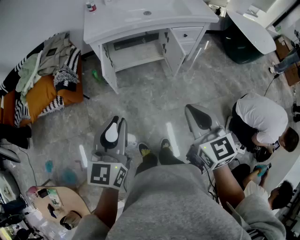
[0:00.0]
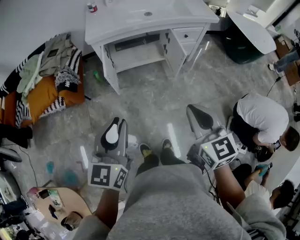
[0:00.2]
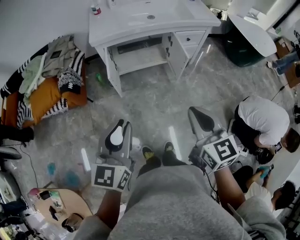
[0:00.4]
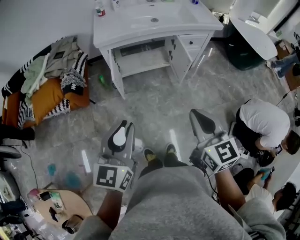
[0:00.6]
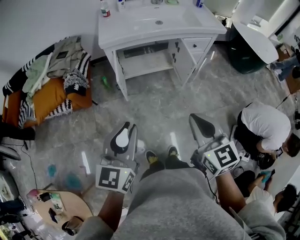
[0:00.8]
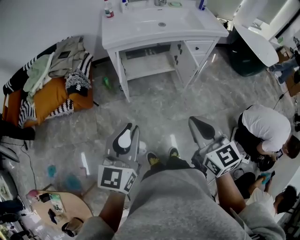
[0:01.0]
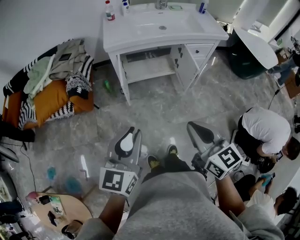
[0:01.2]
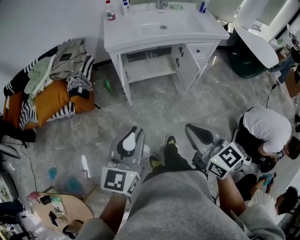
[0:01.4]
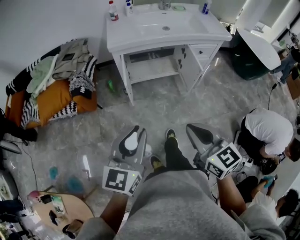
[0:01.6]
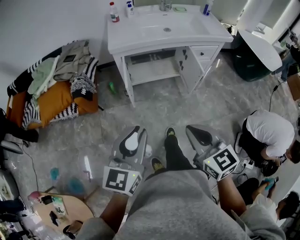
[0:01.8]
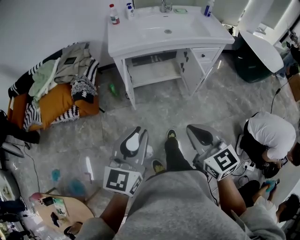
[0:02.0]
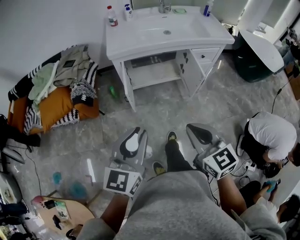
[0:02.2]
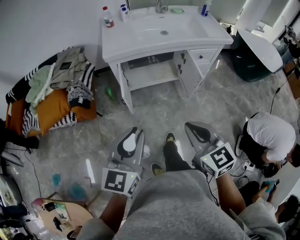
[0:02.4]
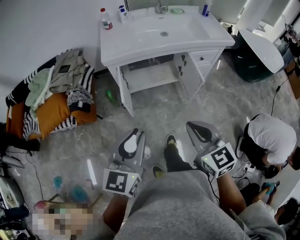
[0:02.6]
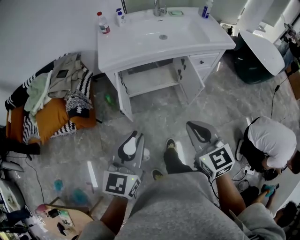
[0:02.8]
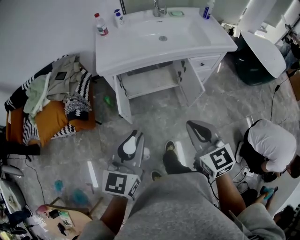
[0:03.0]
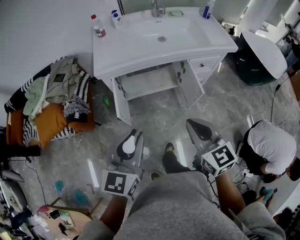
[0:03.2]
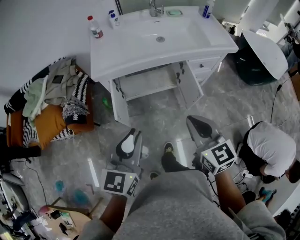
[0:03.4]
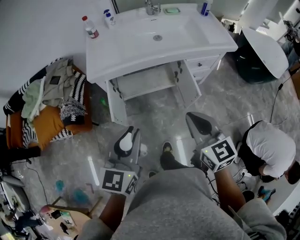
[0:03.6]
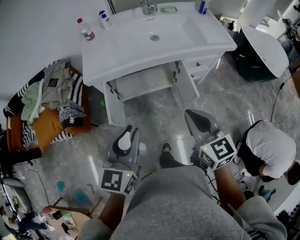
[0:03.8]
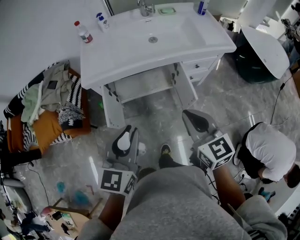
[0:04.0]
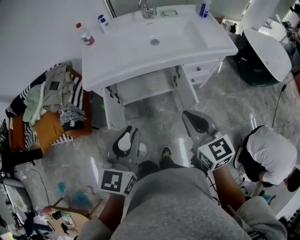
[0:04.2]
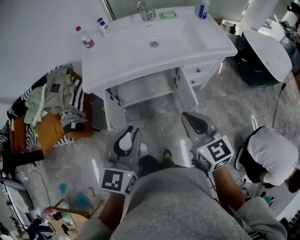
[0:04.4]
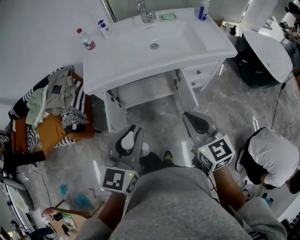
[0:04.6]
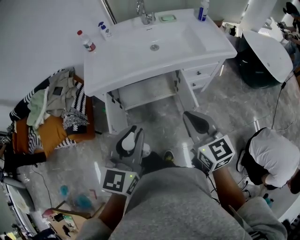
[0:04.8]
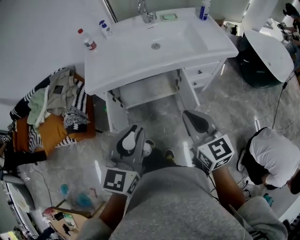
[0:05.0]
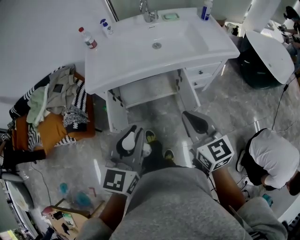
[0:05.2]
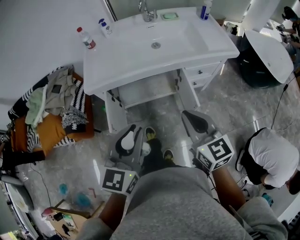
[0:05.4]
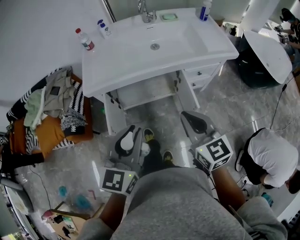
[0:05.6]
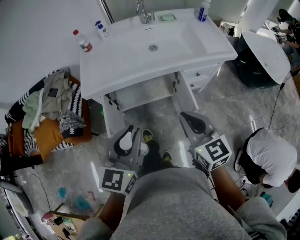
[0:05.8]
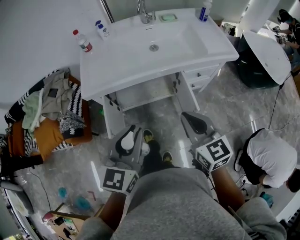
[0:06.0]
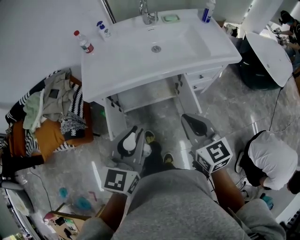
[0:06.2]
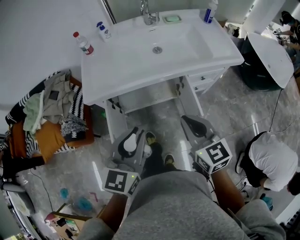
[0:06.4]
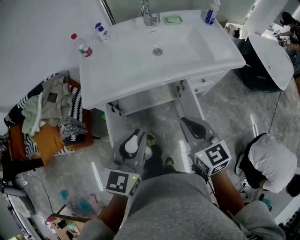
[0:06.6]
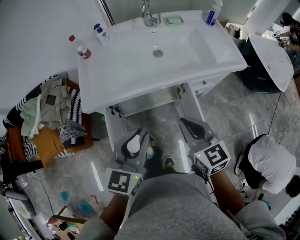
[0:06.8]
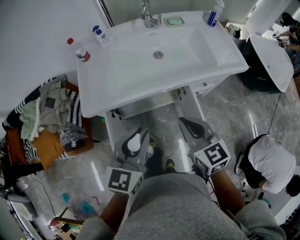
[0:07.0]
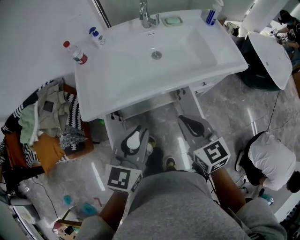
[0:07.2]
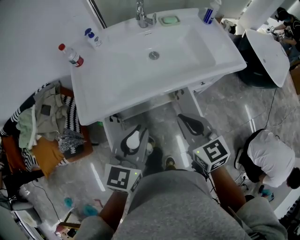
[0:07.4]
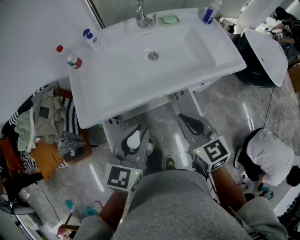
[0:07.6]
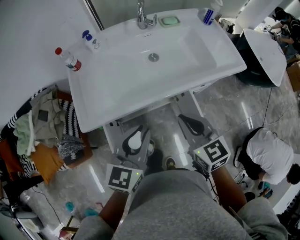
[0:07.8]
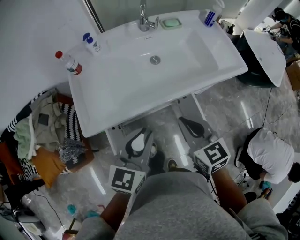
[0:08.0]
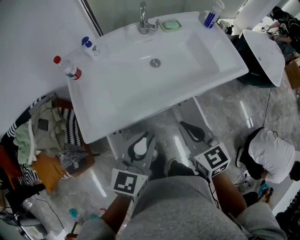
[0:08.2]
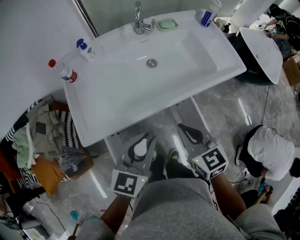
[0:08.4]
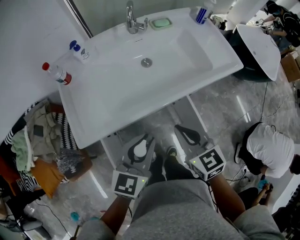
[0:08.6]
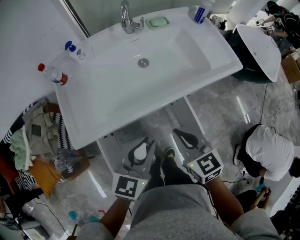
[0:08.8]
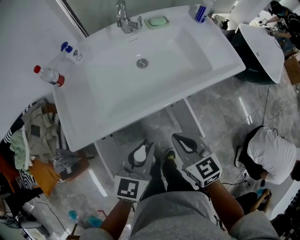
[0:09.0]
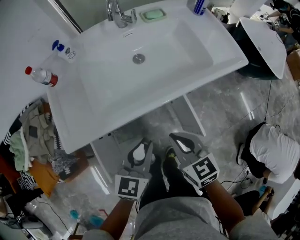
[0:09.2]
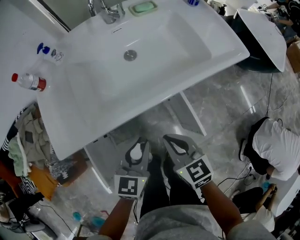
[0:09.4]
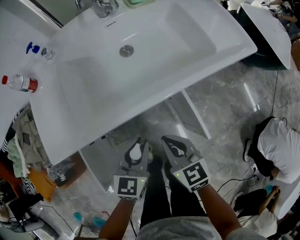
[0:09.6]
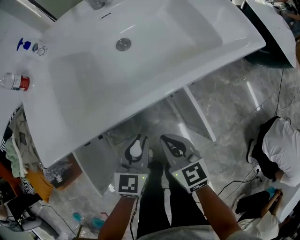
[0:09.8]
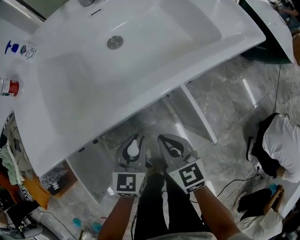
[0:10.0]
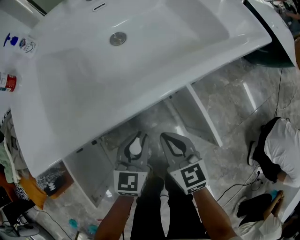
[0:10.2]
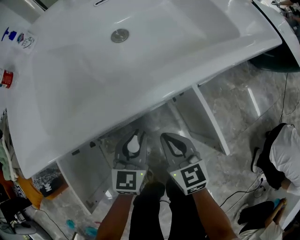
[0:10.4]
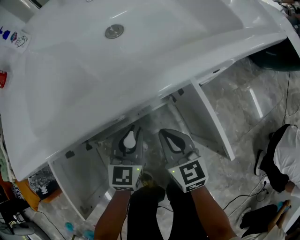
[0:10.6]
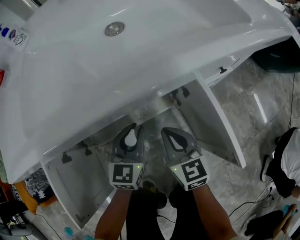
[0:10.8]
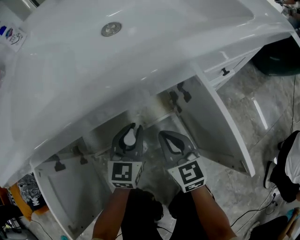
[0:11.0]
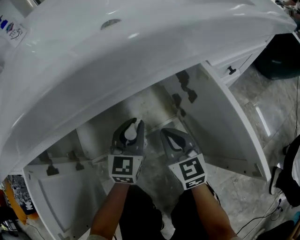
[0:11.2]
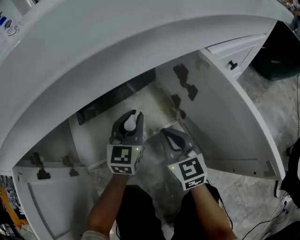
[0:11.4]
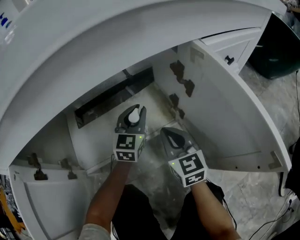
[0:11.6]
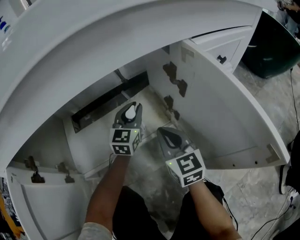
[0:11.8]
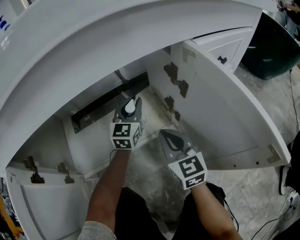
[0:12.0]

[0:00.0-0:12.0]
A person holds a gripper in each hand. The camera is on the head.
0:00.0 to 0:01.6: The right gripper is displaced to the left by some 10 cm. Meanwhile the left gripper goes approximately 5 cm to the left.
0:01.6 to 0:03.0: The two grippers go approximately 20 cm forward.
0:03.0 to 0:04.4: The two grippers go roughly 15 cm forward and to the right.
0:04.4 to 0:06.0: The grippers move only a little.
0:06.0 to 0:07.6: The grippers both shift forward by about 15 cm.
0:07.6 to 0:09.0: Both grippers travel together downward, some 10 cm.
0:09.0 to 0:10.4: Both grippers travel together downward, approximately 30 cm.
0:10.4 to 0:12.0: The right gripper travels downward by some 20 cm, while the left gripper goes about 30 cm downward and forward.

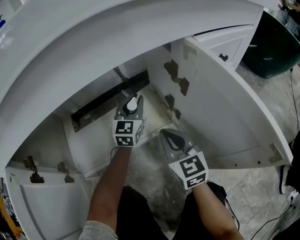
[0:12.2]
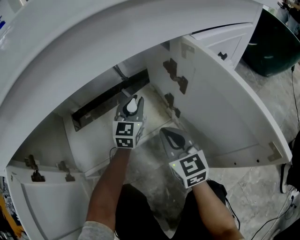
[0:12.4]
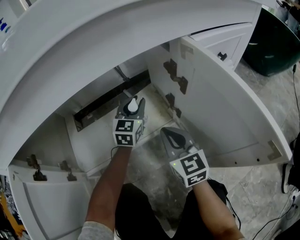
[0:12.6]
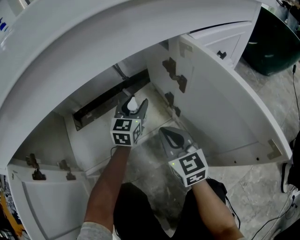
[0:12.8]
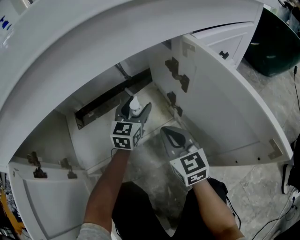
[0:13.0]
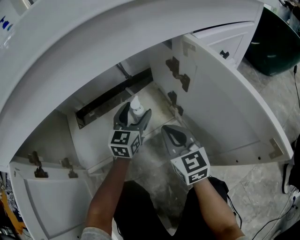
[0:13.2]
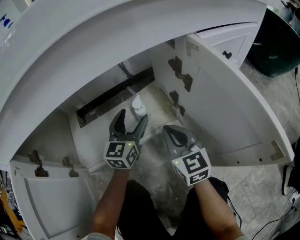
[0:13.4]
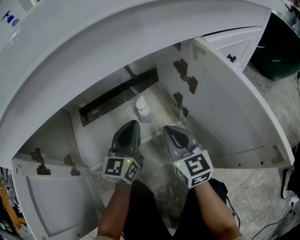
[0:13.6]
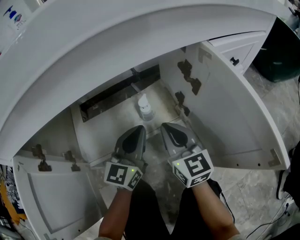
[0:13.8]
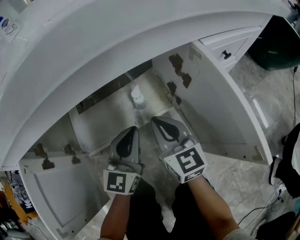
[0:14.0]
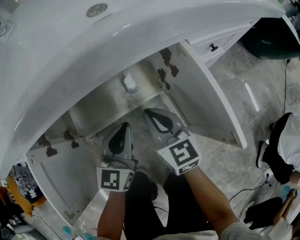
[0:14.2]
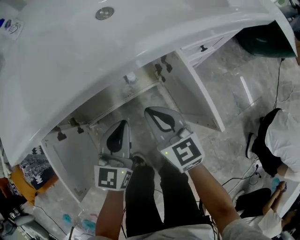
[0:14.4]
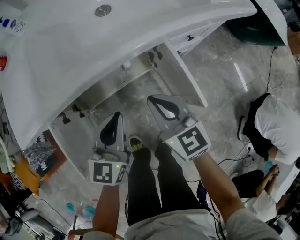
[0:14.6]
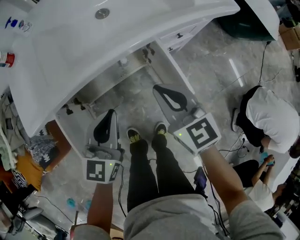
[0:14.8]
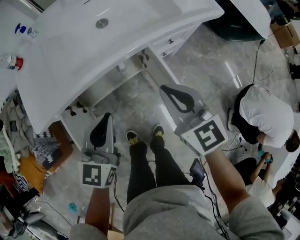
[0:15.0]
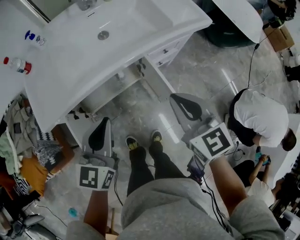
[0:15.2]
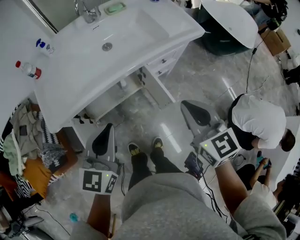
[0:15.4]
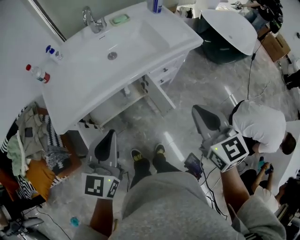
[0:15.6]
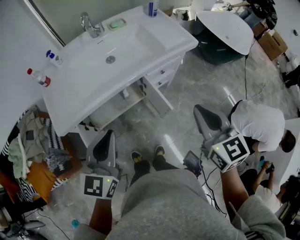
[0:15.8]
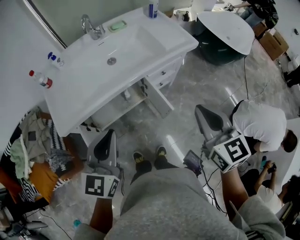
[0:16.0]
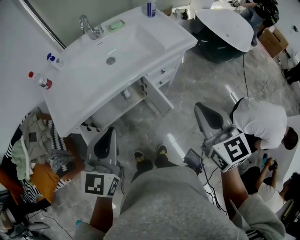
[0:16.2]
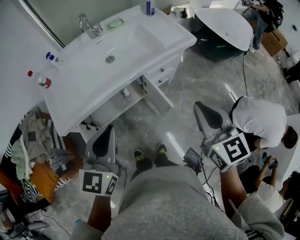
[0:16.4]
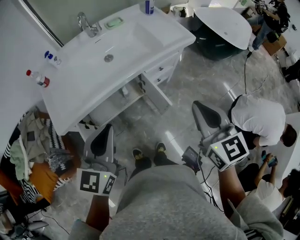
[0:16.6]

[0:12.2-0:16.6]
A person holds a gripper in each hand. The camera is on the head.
0:12.2 to 0:13.6: The left gripper shifts approximately 15 cm backward, and opens, then closes once more.
0:13.6 to 0:15.2: The right gripper travels upward by roughly 50 cm, while the left gripper shifts some 60 cm upward and backward.
0:15.2 to 0:16.6: The left gripper shifts approximately 10 cm upward. The right gripper travels upward, to the right and backward by some 15 cm.

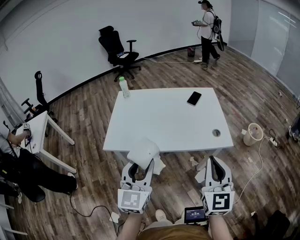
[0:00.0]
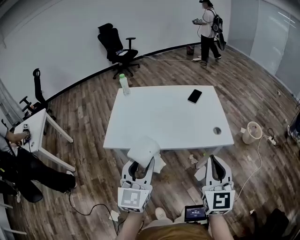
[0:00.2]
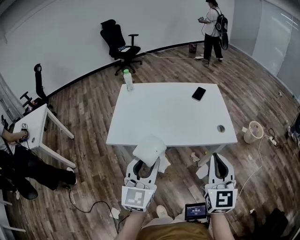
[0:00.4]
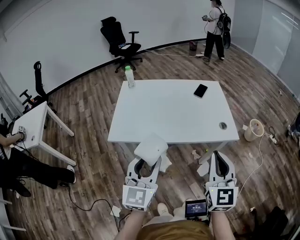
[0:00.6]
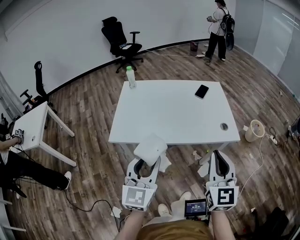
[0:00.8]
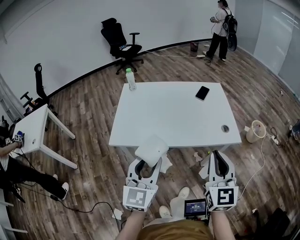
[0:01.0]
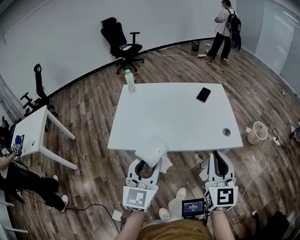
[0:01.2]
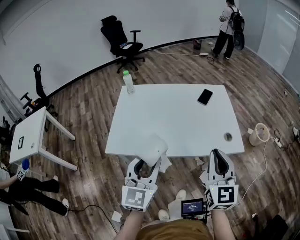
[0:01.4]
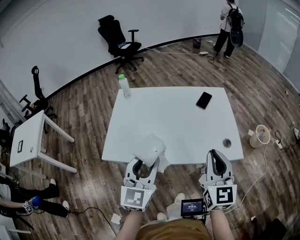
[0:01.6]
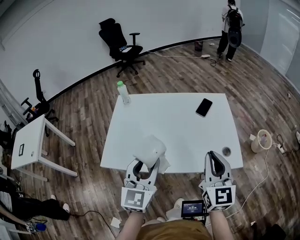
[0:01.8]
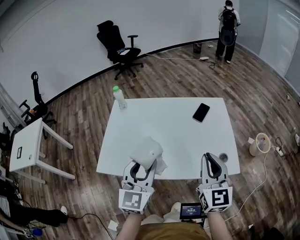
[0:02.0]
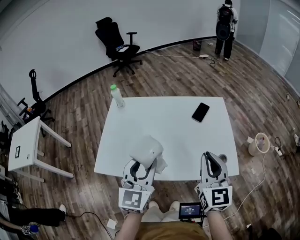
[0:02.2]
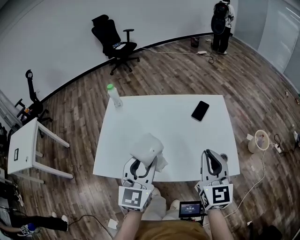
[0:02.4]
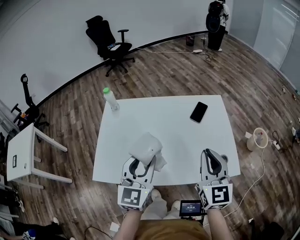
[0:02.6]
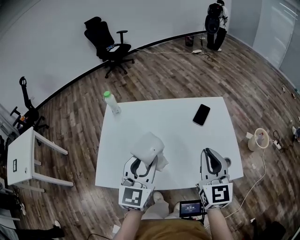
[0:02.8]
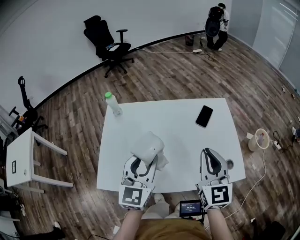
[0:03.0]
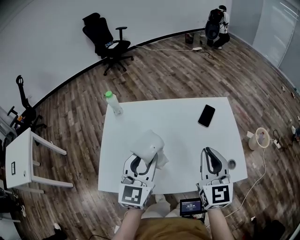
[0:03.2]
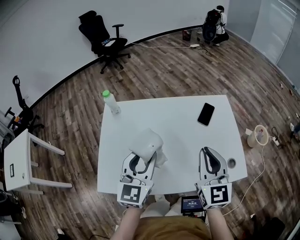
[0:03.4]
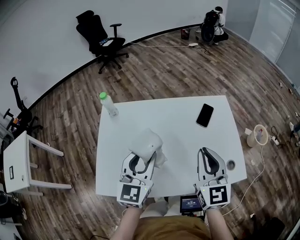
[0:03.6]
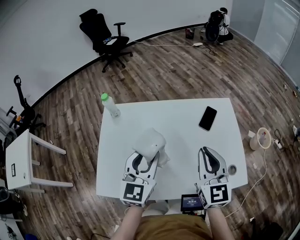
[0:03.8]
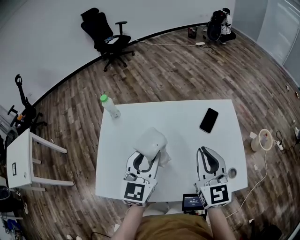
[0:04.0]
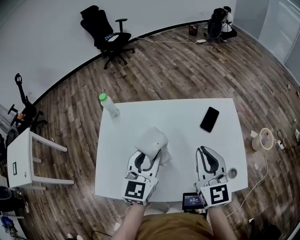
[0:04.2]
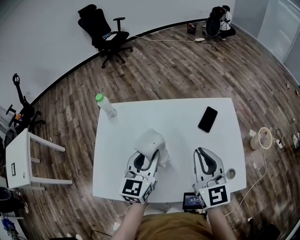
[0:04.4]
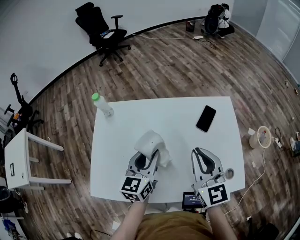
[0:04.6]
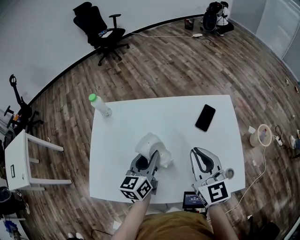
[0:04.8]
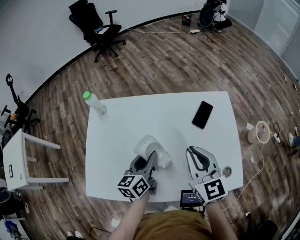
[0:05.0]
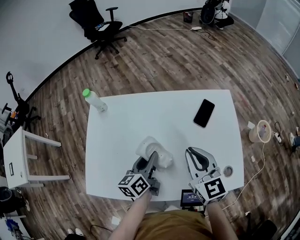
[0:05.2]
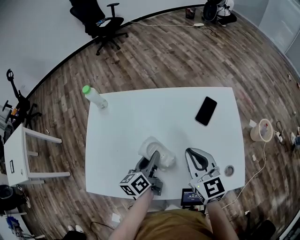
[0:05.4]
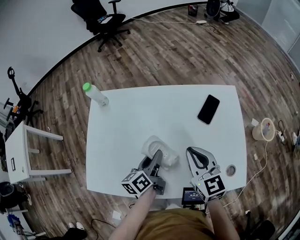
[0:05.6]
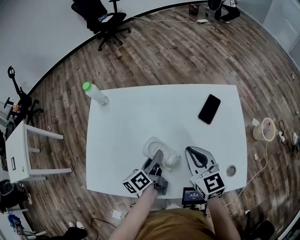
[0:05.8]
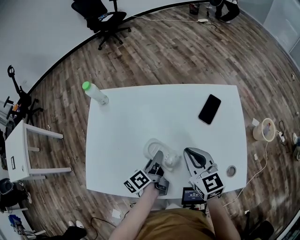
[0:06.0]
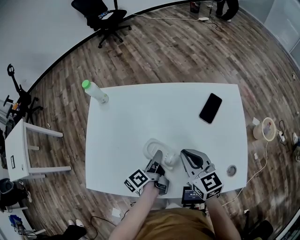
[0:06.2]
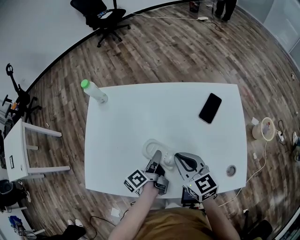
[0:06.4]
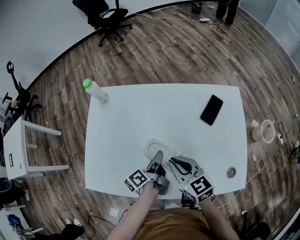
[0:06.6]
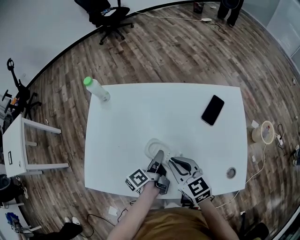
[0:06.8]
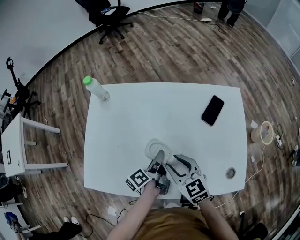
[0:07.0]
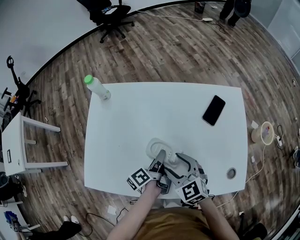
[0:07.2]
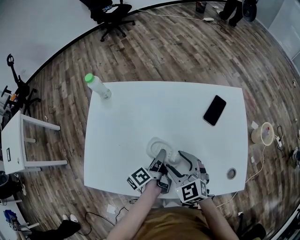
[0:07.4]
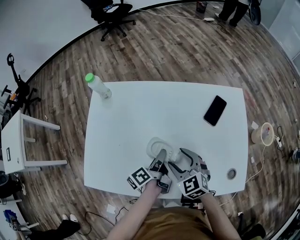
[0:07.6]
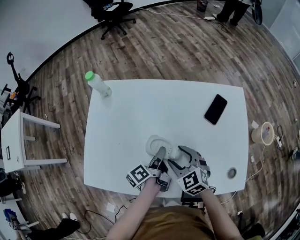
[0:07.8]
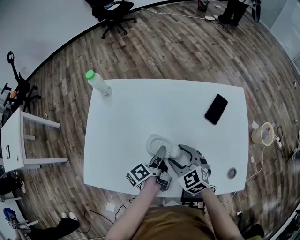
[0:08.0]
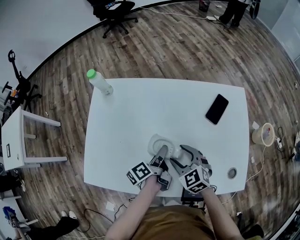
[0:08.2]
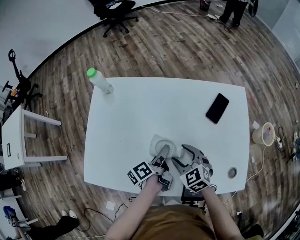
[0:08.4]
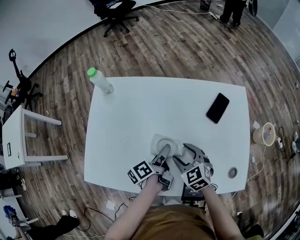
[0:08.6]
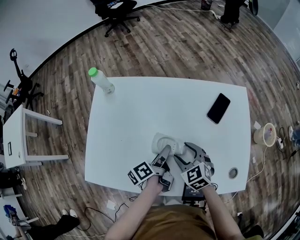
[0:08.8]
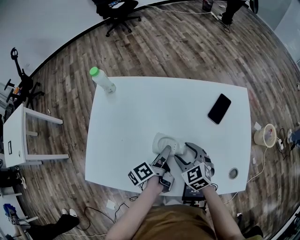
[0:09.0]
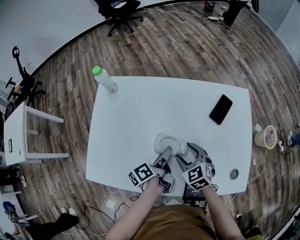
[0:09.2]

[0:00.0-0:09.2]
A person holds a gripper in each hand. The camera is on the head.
0:00.0 to 0:01.6: Both grippers travel together forward, roughly 15 cm.
0:01.6 to 0:03.0: Both grippers travel together forward, some 20 cm.
0:03.0 to 0:04.6: The right gripper shifts roughly 10 cm forward. Meanwhile the left gripper travels forward and downward by roughly 15 cm.
0:04.6 to 0:06.2: The grippers both shift downward by roughly 15 cm. The right gripper changes its angle by approximately 20 degrees. The left gripper twists some 70 degrees counterclockwise, seen from behind.
0:06.2 to 0:07.6: The right gripper travels downward by about 10 cm, rotates approximately 30 degrees, and opens.
0:07.6 to 0:09.2: The left gripper opens.
